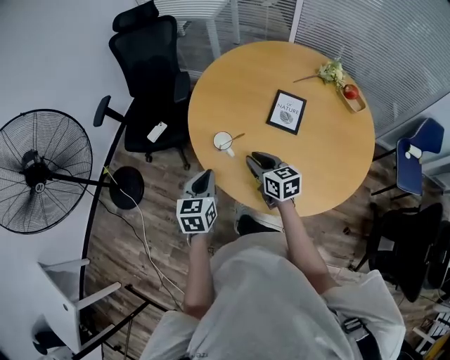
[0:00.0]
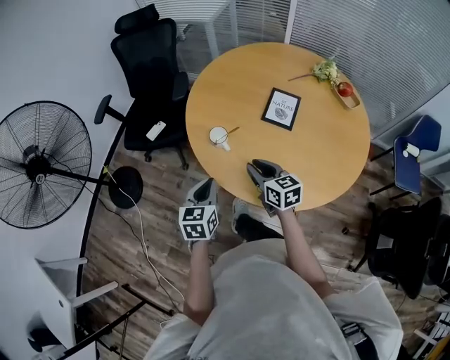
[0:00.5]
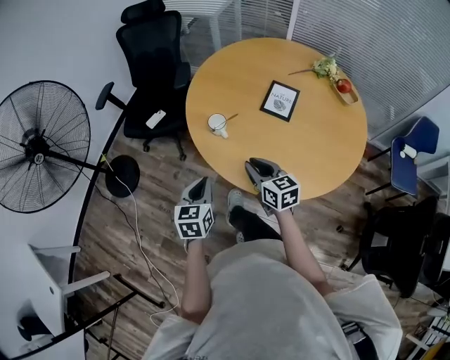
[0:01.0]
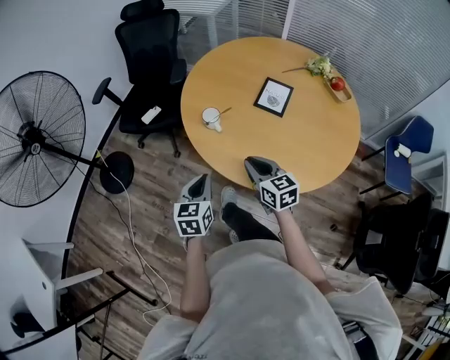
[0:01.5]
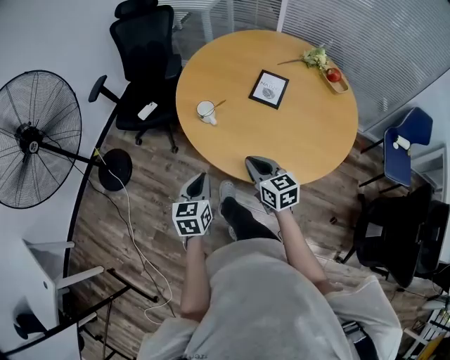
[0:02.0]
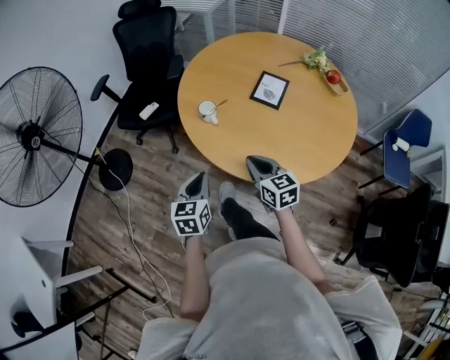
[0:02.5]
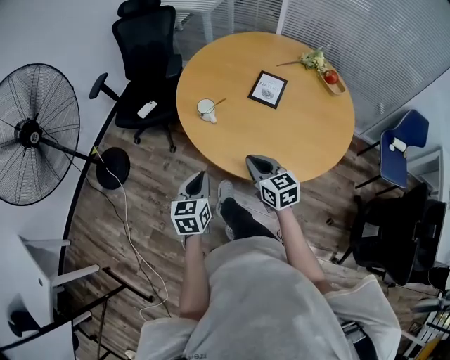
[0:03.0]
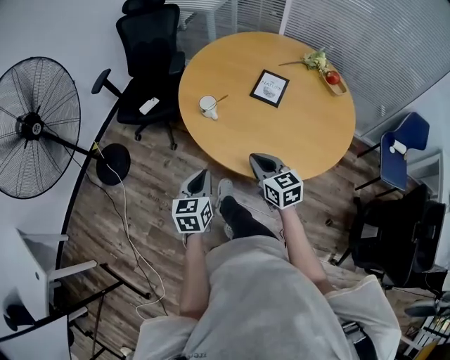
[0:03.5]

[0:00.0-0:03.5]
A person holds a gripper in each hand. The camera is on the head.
0:00.0 to 0:02.0: Both grippers travel together backward, approximately 15 cm. The right gripper closes its fingers.
0:02.0 to 0:03.5: The grippers move only a little.

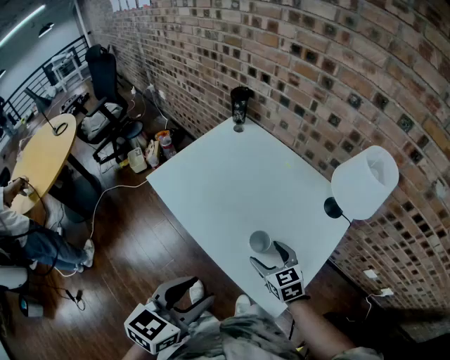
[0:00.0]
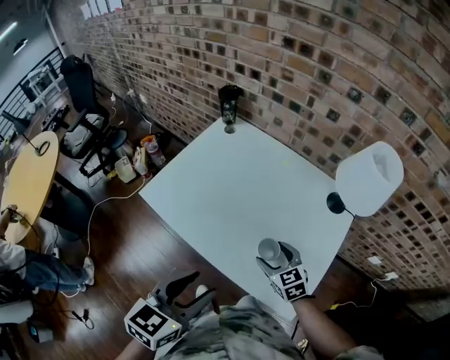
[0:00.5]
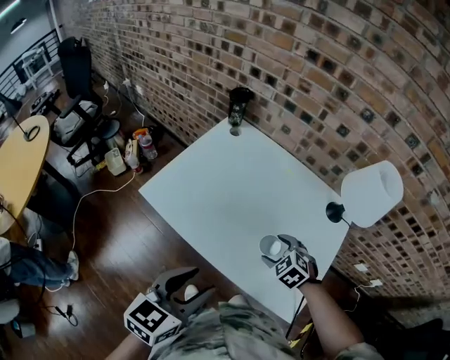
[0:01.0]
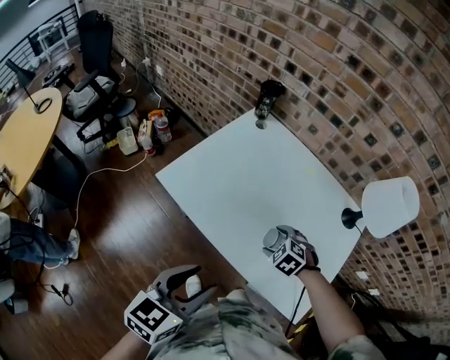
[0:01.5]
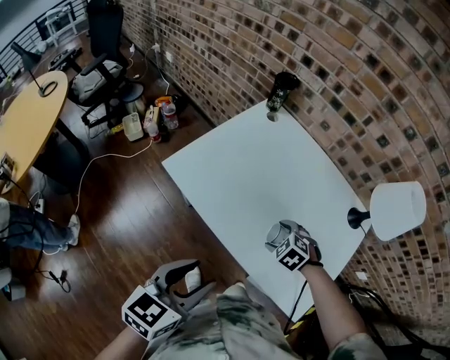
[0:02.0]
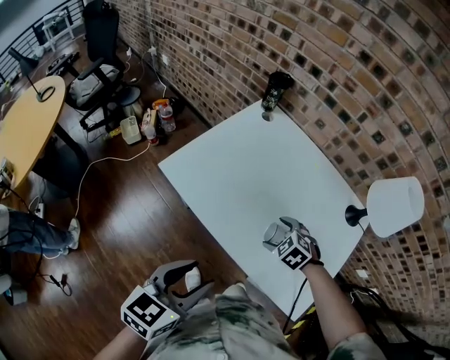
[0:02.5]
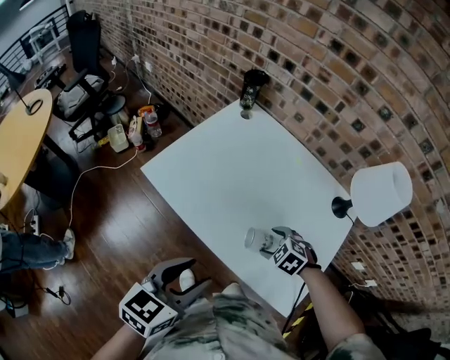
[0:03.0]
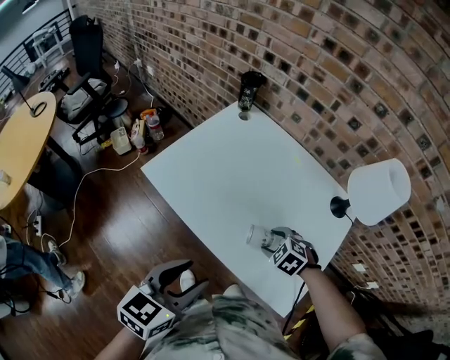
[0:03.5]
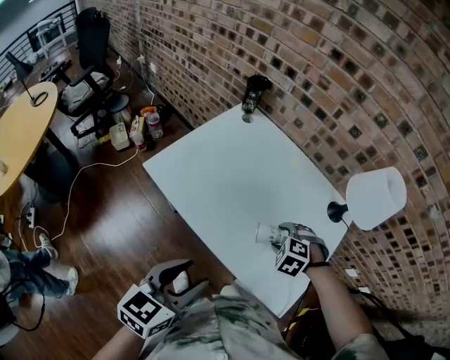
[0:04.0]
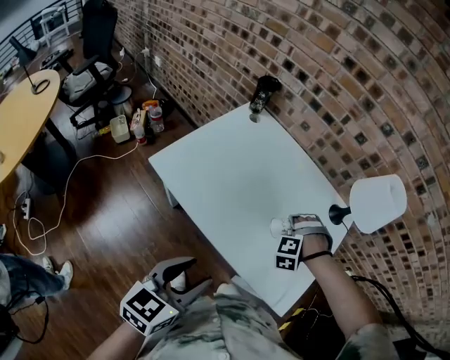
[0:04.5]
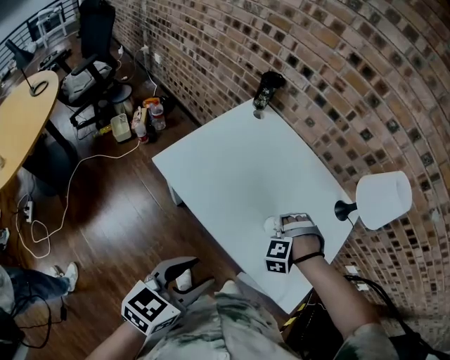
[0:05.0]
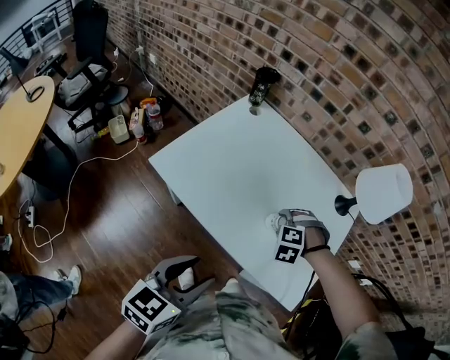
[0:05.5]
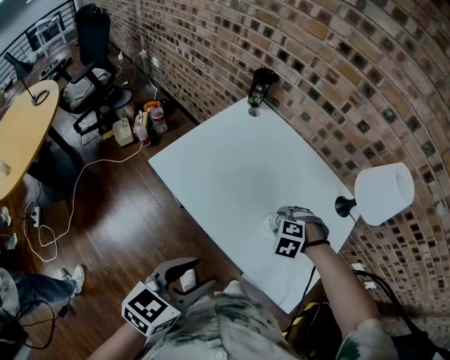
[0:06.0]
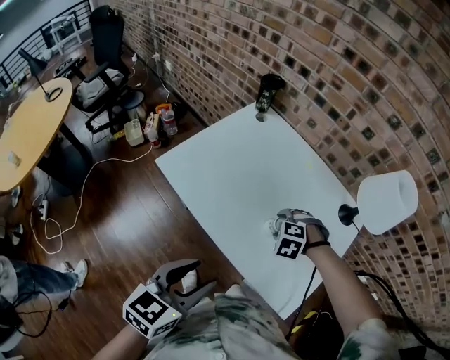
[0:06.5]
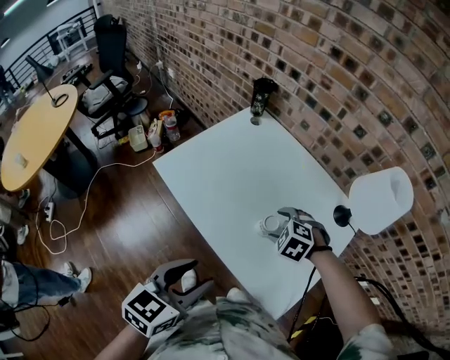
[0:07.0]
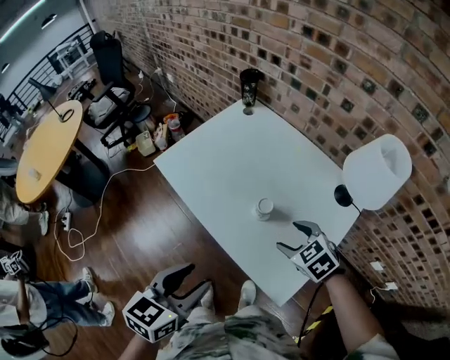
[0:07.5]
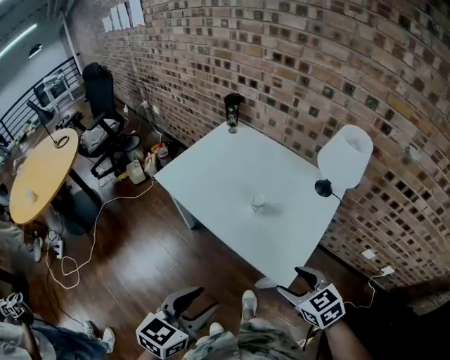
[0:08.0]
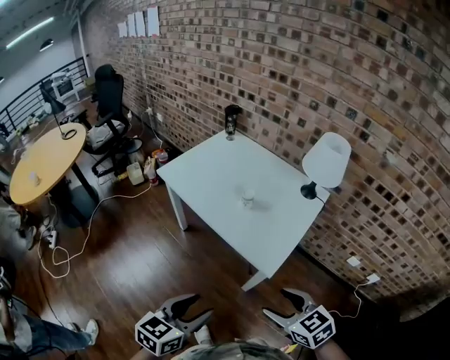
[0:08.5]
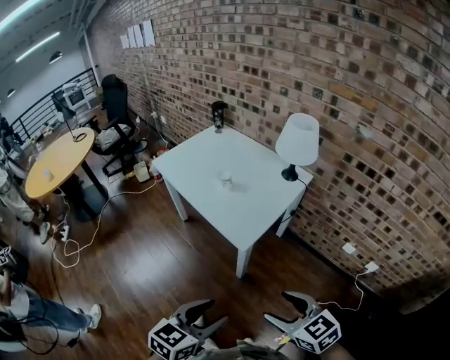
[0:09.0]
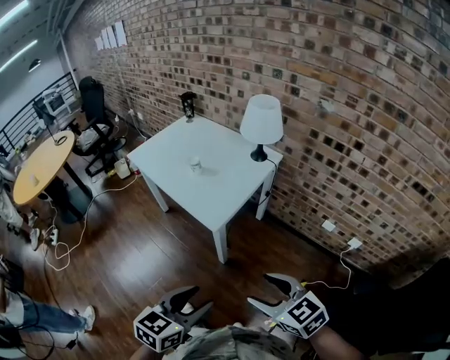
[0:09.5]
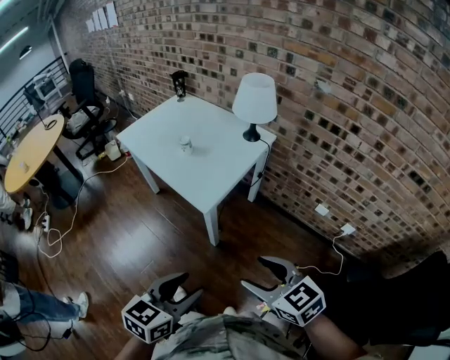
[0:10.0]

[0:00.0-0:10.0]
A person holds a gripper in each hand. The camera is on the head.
0:00.0 to 0:02.0: The right gripper goes roughly 15 cm to the left, forward and downward, and tilts its fingers approximately 40 degrees downward. Meanwhile the left gripper is displaced to the left and forward by roughly 15 cm.
0:02.0 to 0:04.0: The right gripper changes place by approximately 10 cm, while the left gripper moves about 5 cm.
0:06.0 to 0:08.0: The left gripper ends up about 25 cm from where it was. Meanwhile the right gripper ends up approximately 35 cm from where it was, and points its fingers approximately 30 degrees further upward.
0:08.0 to 0:10.0: Both grippers travel together backward and to the right, roughly 40 cm.

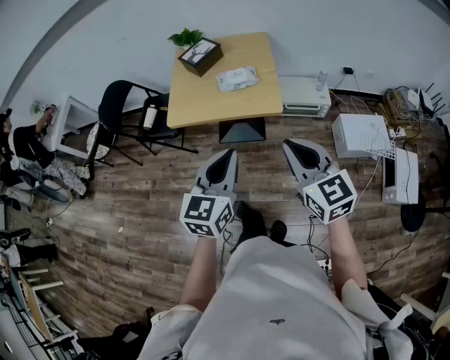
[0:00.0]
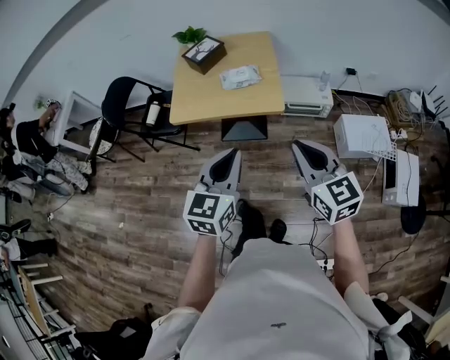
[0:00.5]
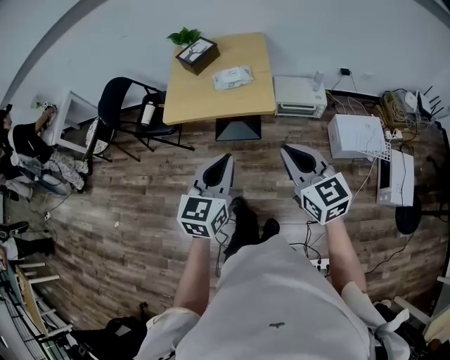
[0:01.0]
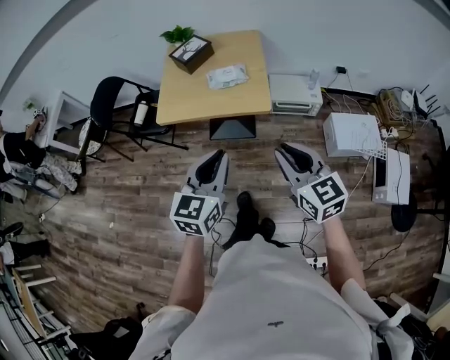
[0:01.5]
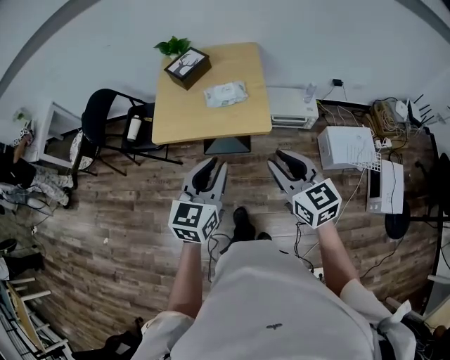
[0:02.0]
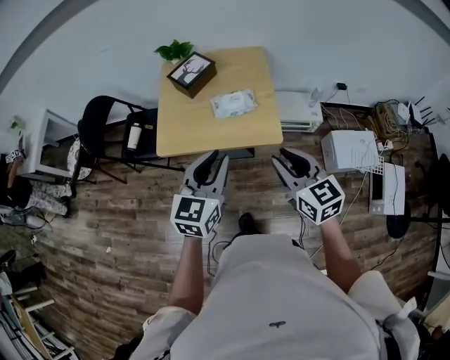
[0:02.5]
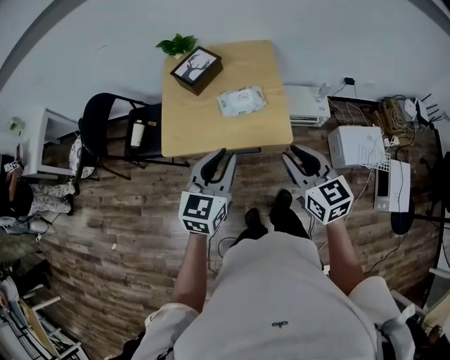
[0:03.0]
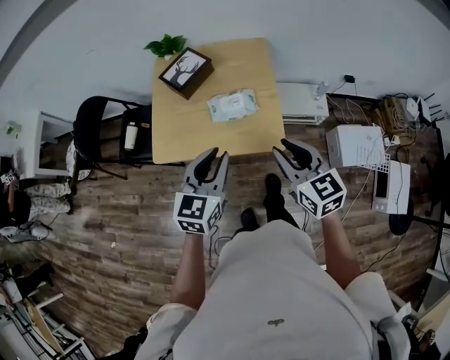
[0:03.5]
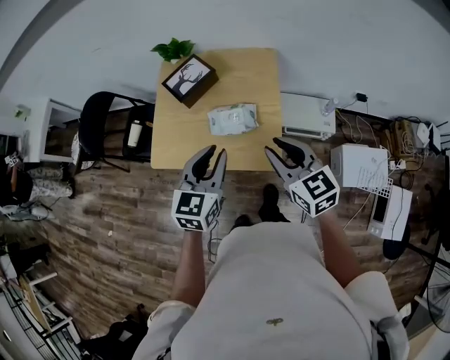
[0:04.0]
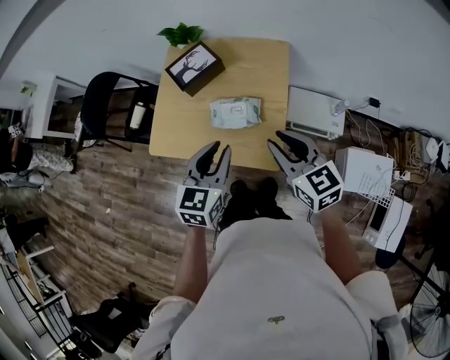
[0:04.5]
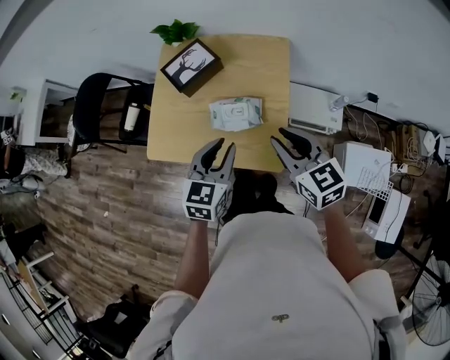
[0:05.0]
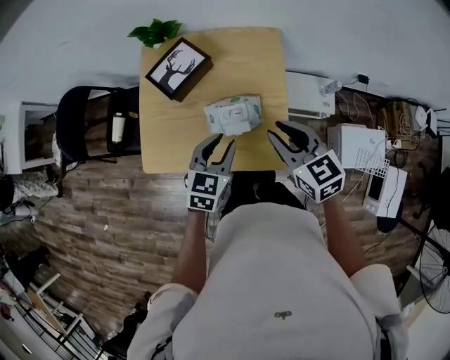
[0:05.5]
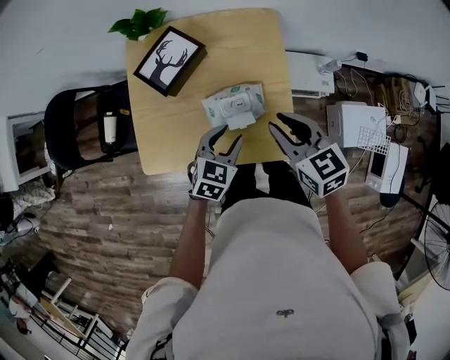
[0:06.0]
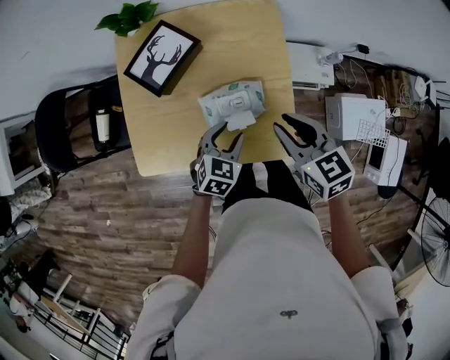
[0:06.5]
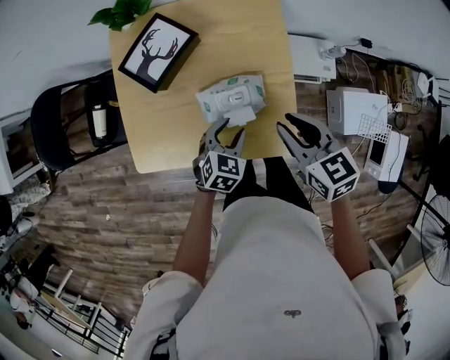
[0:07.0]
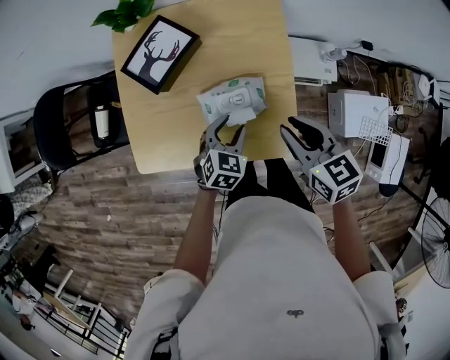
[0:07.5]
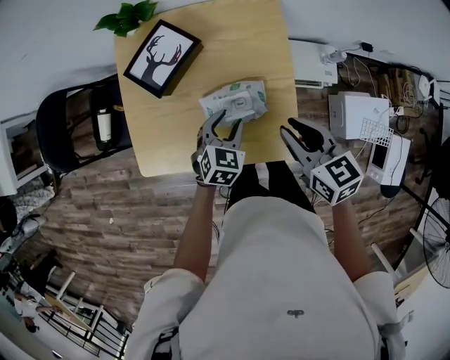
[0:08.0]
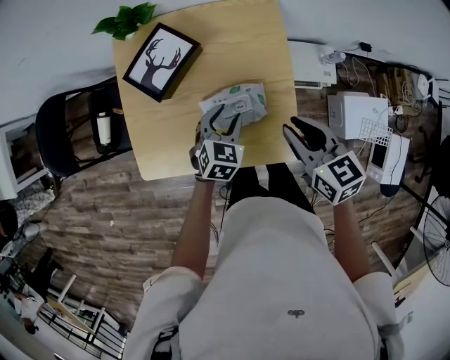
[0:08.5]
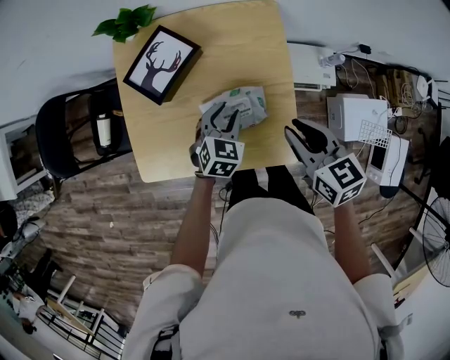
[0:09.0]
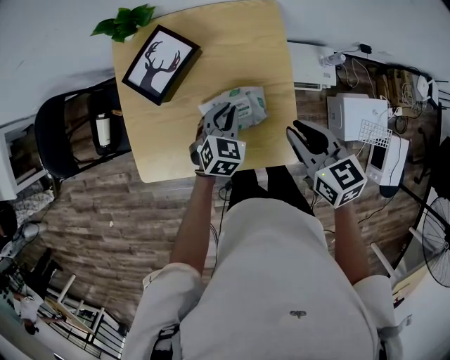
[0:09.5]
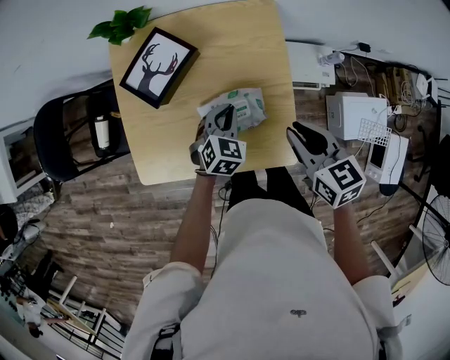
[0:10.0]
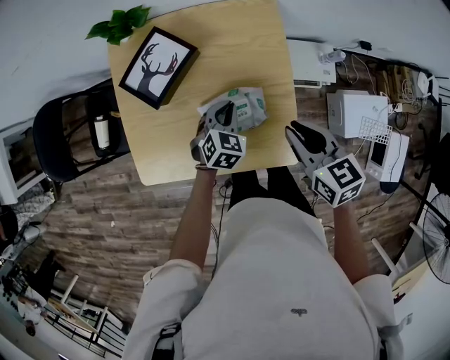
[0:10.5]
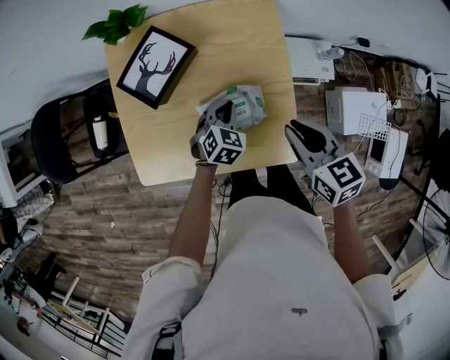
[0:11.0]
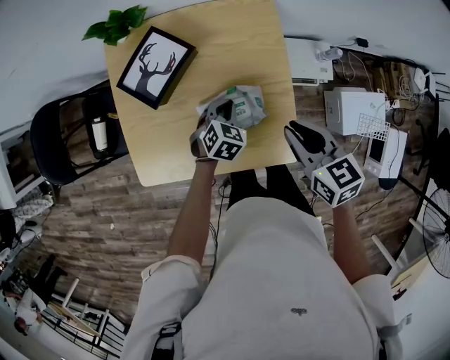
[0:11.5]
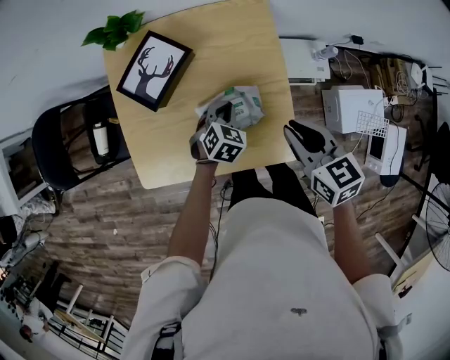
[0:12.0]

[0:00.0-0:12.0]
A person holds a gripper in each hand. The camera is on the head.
0:00.0 to 0:02.0: Both grippers travel together forward, approximately 5 cm. The right gripper opens its fingers.
0:02.0 to 0:04.0: The two grippers go roughly 30 cm forward.
0:04.0 to 0:06.0: The left gripper moves downward and forward, roughly 25 cm, and rotates about 30 degrees; the right gripper moves forward and downward, about 15 cm.
0:06.0 to 0:08.0: The left gripper is displaced downward by approximately 5 cm.
0:08.0 to 0:10.0: The left gripper moves forward, approximately 5 cm, and closes up.
0:10.0 to 0:12.0: The grippers stay close to where they were, moving slightly.

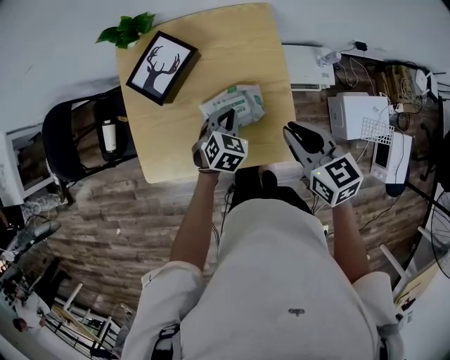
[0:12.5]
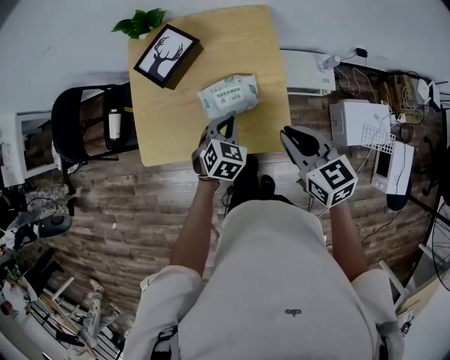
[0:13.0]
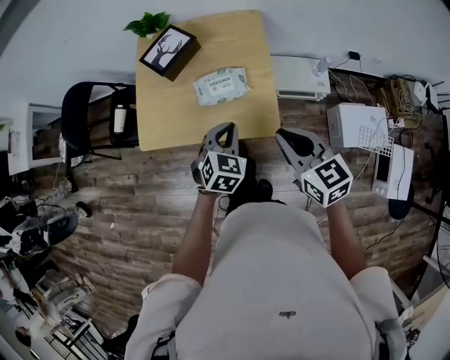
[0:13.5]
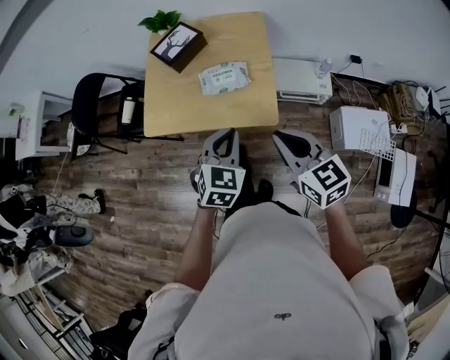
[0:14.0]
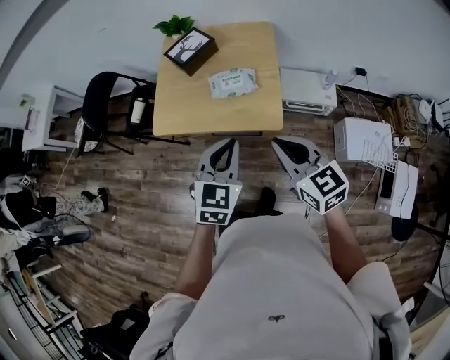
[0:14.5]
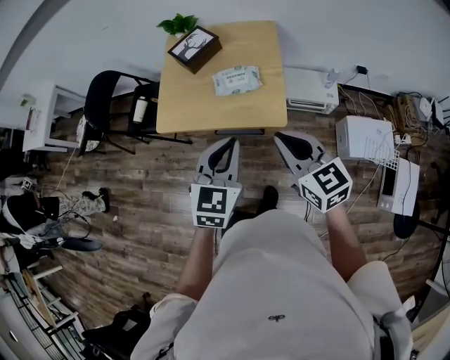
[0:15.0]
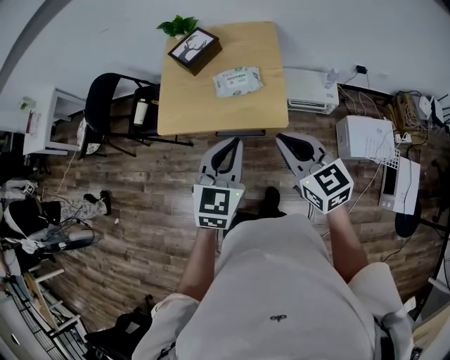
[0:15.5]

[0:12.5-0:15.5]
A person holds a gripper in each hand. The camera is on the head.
0:12.5 to 0:14.0: The right gripper moves backward, some 25 cm, while the left gripper travels backward and upward by about 35 cm, and rotates about 20 degrees.
0:14.0 to 0:15.5: The left gripper shifts some 10 cm upward and backward. The right gripper shifts by approximately 5 cm.
